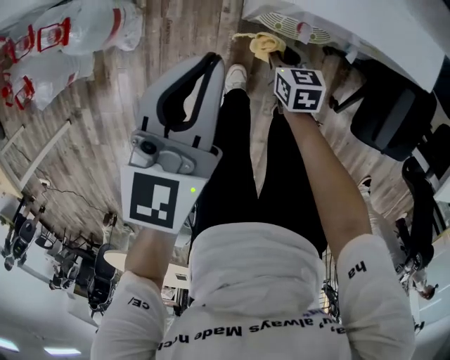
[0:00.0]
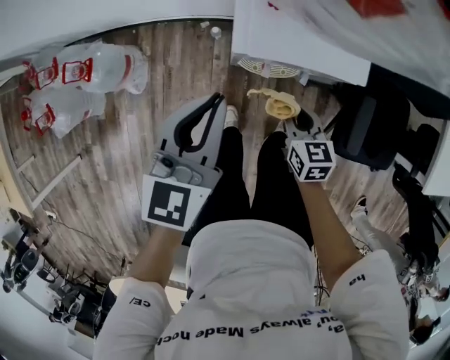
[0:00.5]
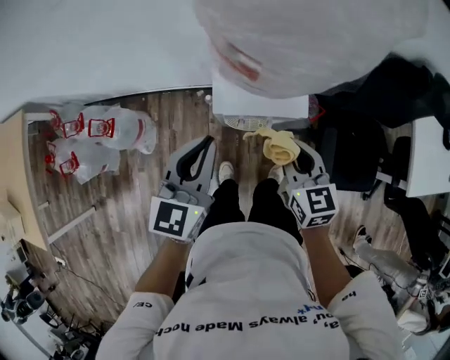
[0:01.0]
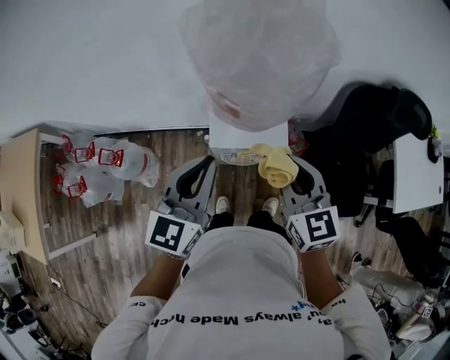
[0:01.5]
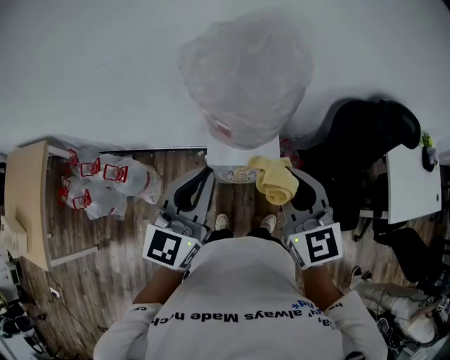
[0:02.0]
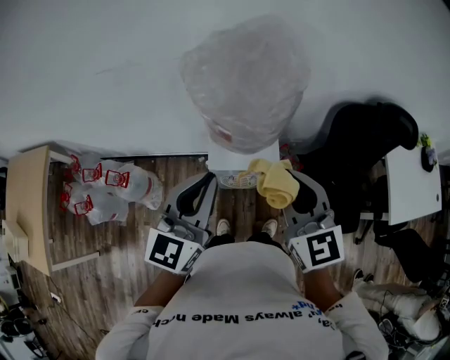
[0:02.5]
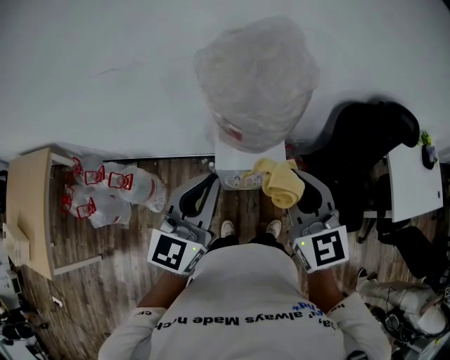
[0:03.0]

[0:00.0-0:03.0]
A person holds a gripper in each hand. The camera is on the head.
0:00.0 to 0:01.5: The right gripper travels upward by about 60 cm, and changes its angle by some 40 degrees, while the left gripper shifts roughly 35 cm upward.
0:01.5 to 0:03.0: The grippers both shift upward by some 10 cm.

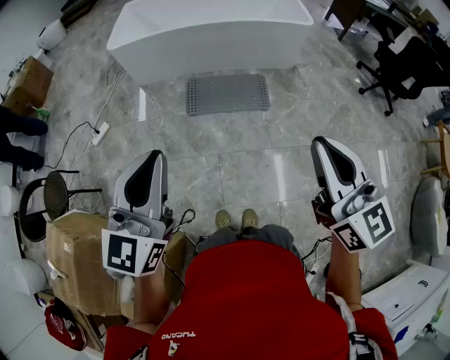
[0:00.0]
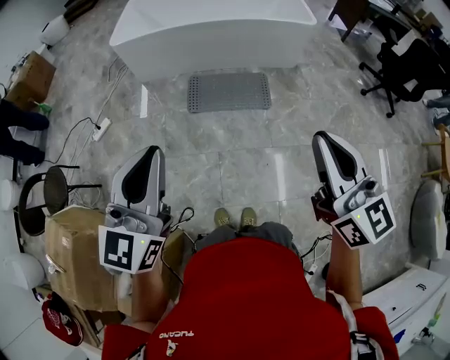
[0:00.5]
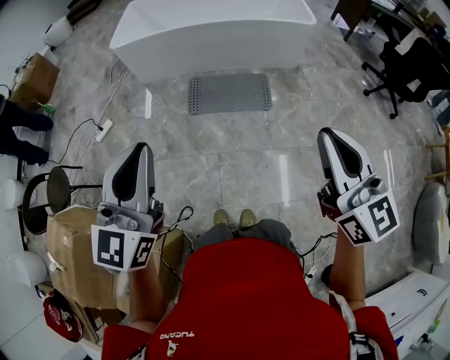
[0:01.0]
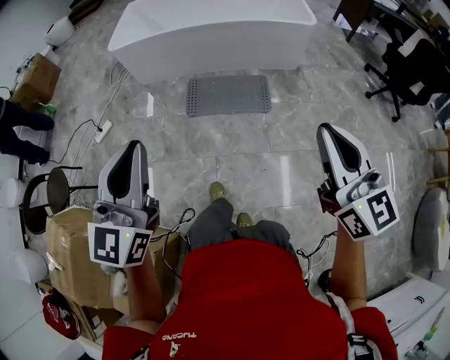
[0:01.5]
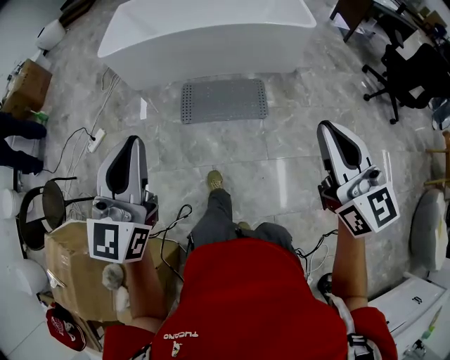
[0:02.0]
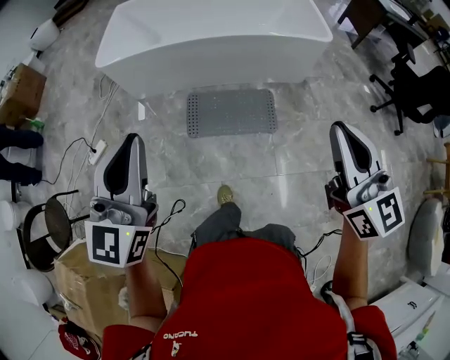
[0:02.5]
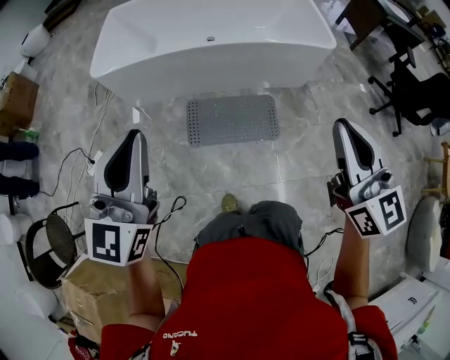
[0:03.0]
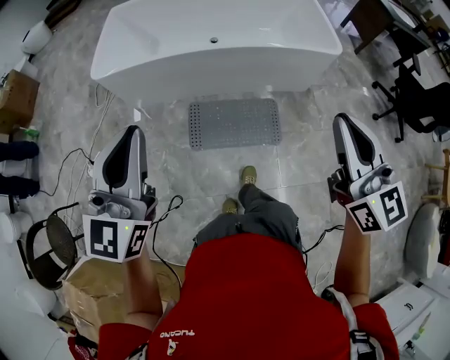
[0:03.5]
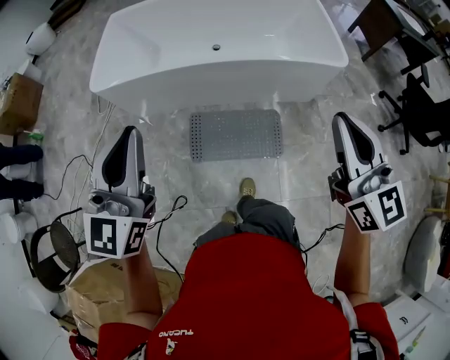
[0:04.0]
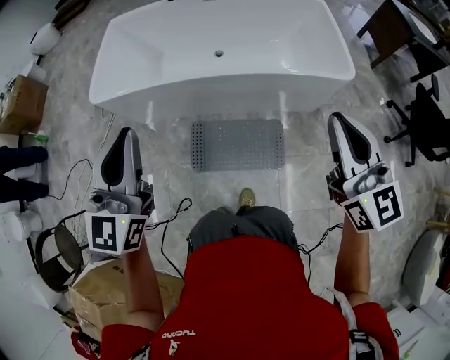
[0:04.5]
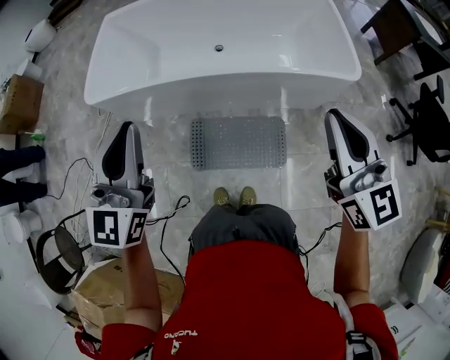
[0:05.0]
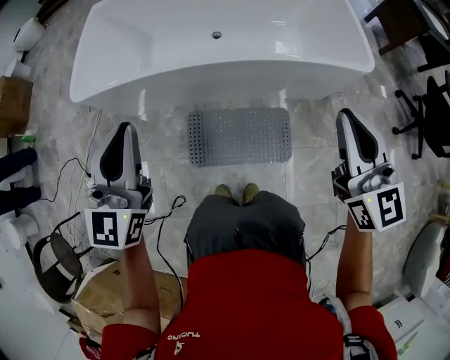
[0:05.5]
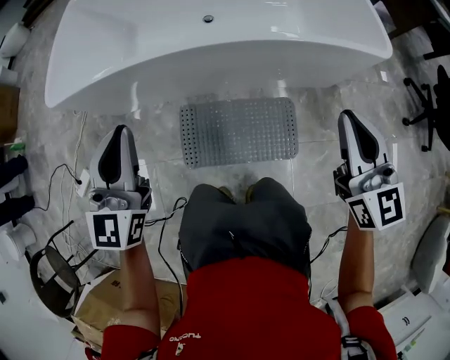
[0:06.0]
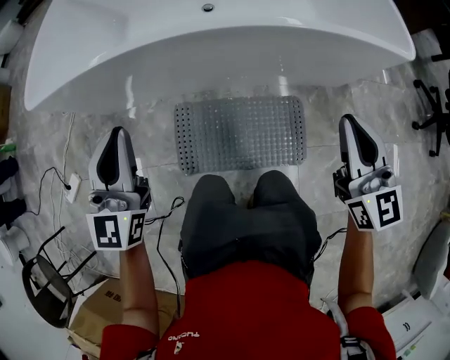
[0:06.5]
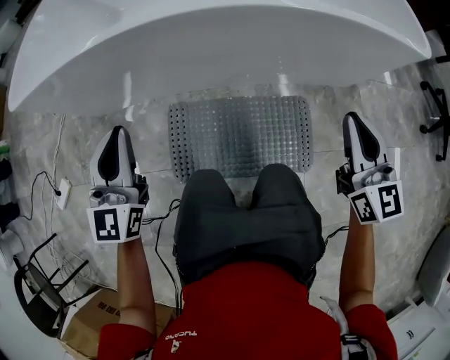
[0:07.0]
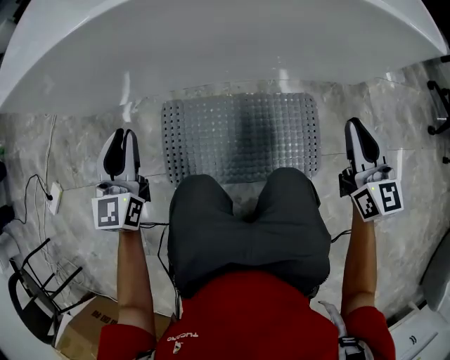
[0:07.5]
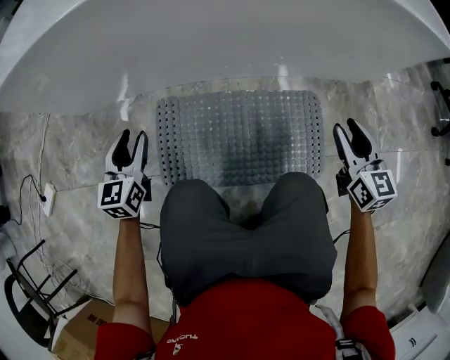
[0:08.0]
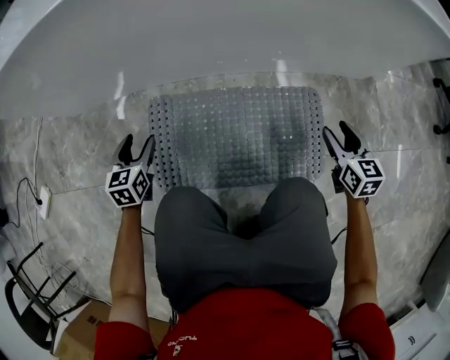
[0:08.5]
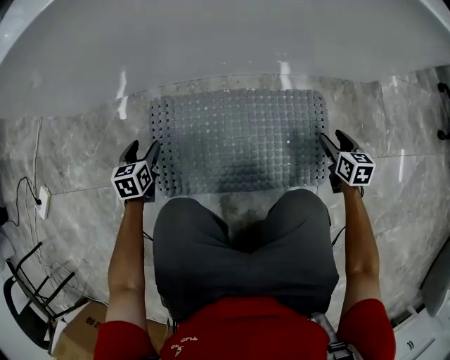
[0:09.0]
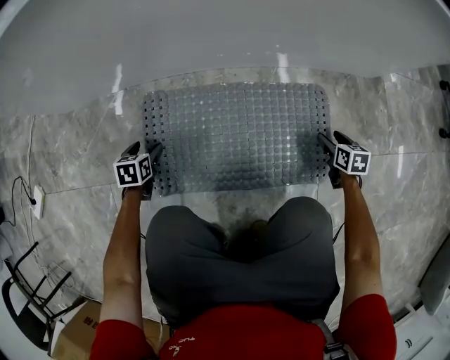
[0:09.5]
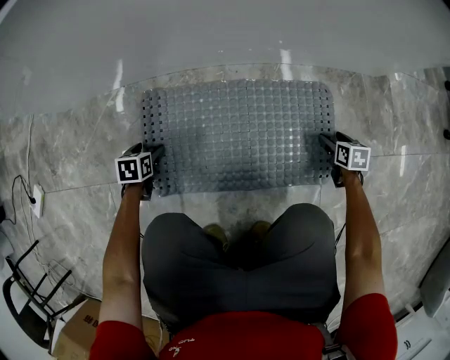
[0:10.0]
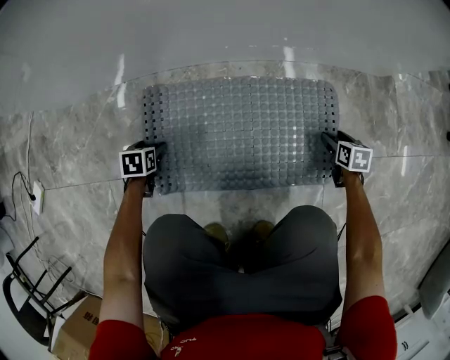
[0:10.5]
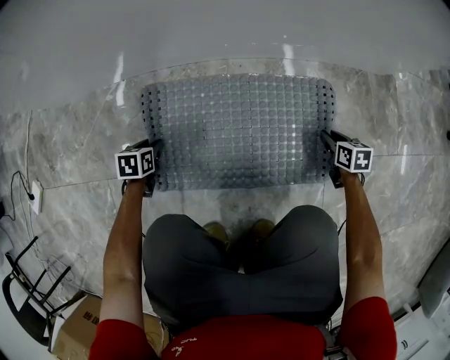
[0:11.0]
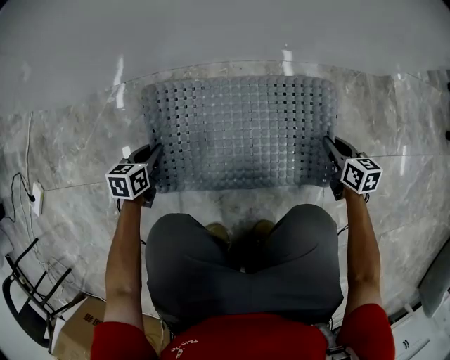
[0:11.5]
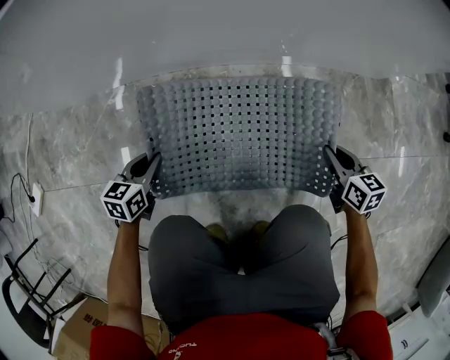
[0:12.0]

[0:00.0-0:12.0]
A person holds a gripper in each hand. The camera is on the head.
0:00.0 to 0:02.0: The left gripper travels forward by some 15 cm. The right gripper heads forward and to the right, covering some 15 cm.
0:02.0 to 0:04.0: Both grippers move forward, roughly 40 cm.
0:04.0 to 0:06.0: Both grippers move downward and forward, about 30 cm.
0:06.0 to 0:08.0: The two grippers go roughly 50 cm downward. The left gripper rotates roughly 20 degrees, and opens, while the right gripper opens.
0:08.0 to 0:10.0: The grippers both shift downward by some 30 cm. The right gripper angles its fingers downward, by roughly 40 degrees, and opens up. The left gripper points its fingers approximately 50 degrees further downward, and opens up.
0:10.0 to 0:12.0: The left gripper goes some 10 cm upward and to the right, rotates some 30 degrees, and closes its fingers. The right gripper is displaced upward and to the left by roughly 15 cm, changes its angle by about 20 degrees, and closes up.

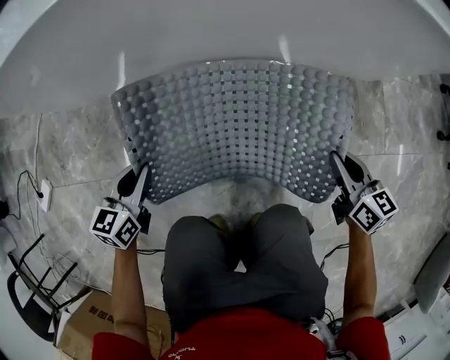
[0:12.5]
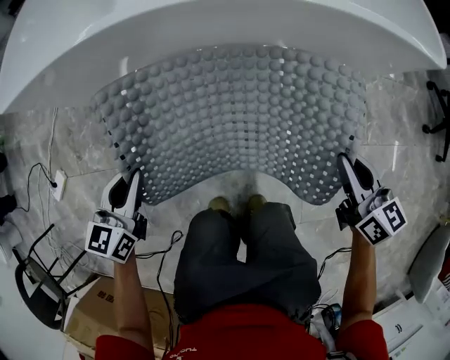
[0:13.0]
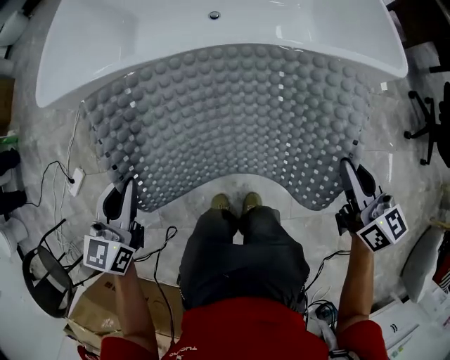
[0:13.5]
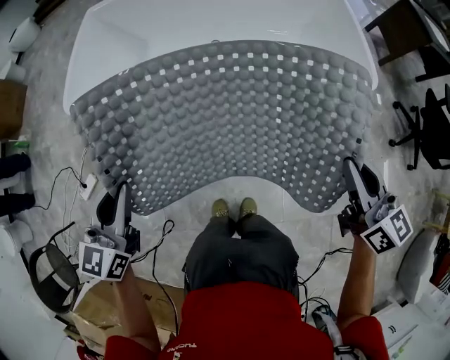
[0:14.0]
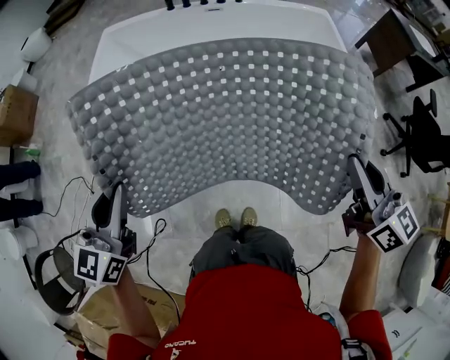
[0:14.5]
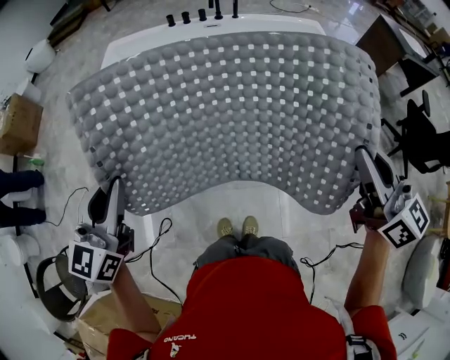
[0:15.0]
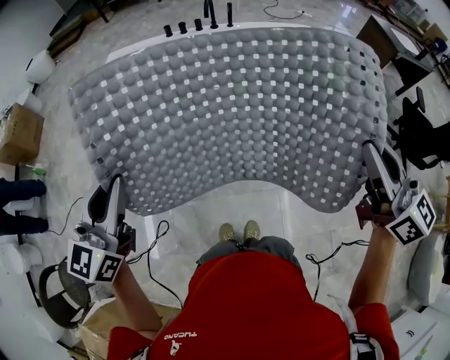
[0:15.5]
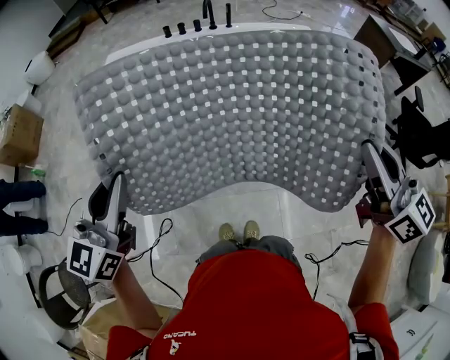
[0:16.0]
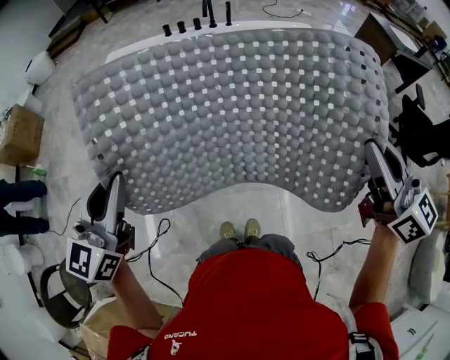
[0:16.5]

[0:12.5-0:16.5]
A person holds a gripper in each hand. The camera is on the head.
0:14.5 to 0:16.5: The grippers make only small movements.

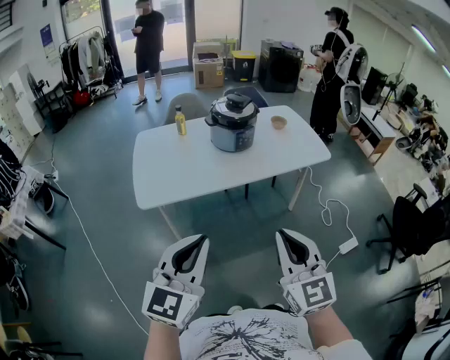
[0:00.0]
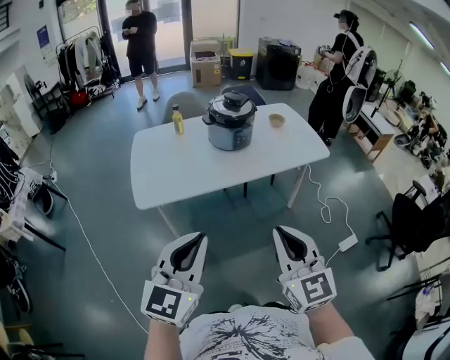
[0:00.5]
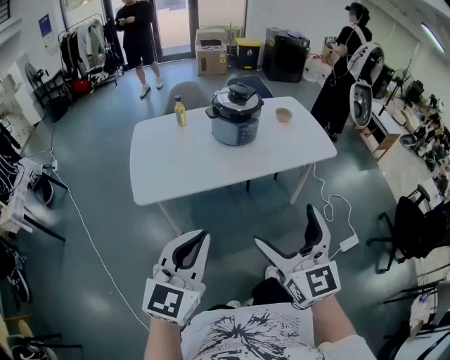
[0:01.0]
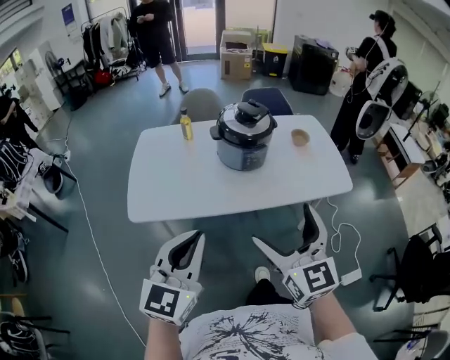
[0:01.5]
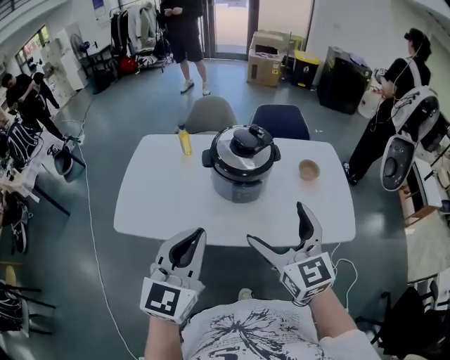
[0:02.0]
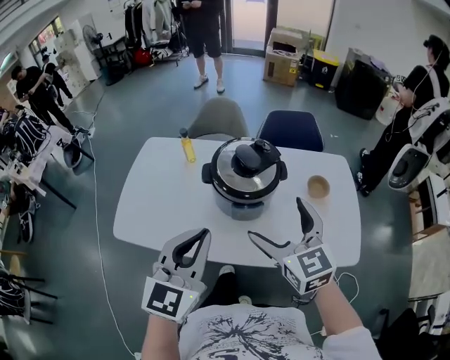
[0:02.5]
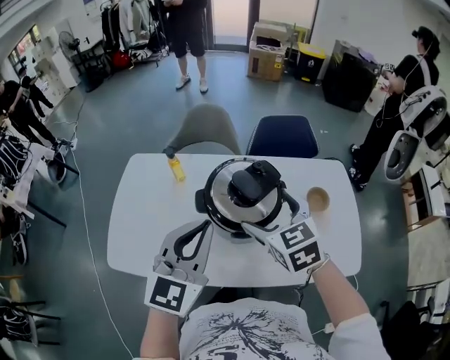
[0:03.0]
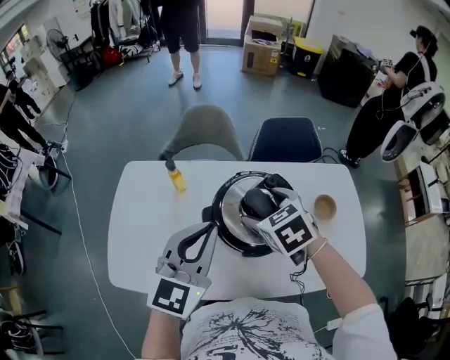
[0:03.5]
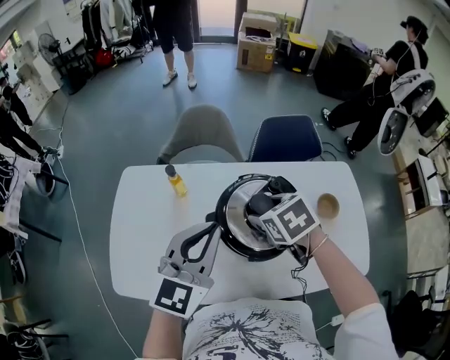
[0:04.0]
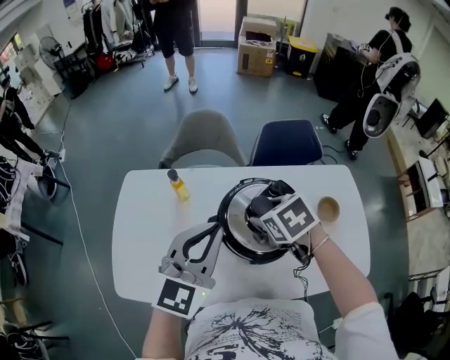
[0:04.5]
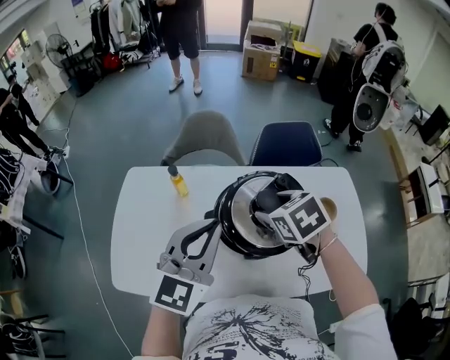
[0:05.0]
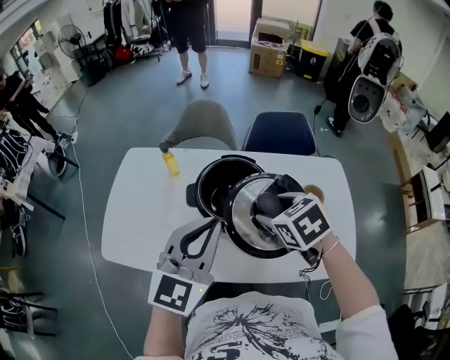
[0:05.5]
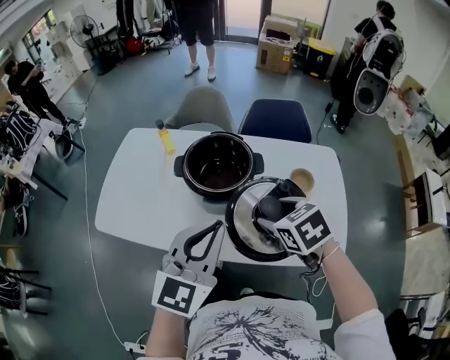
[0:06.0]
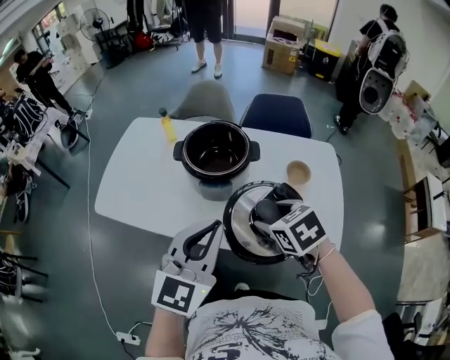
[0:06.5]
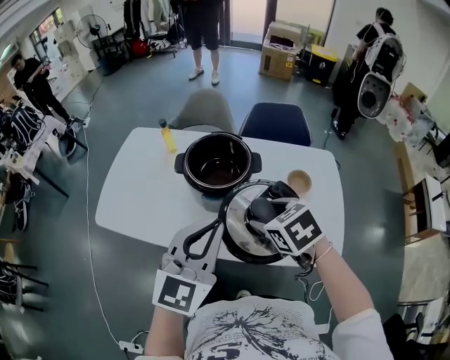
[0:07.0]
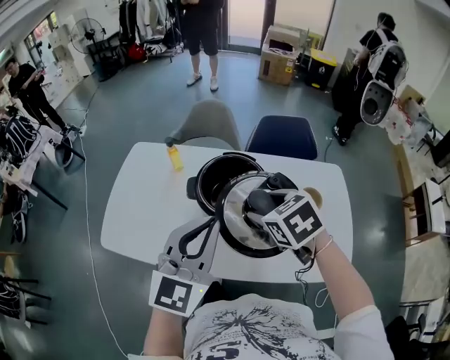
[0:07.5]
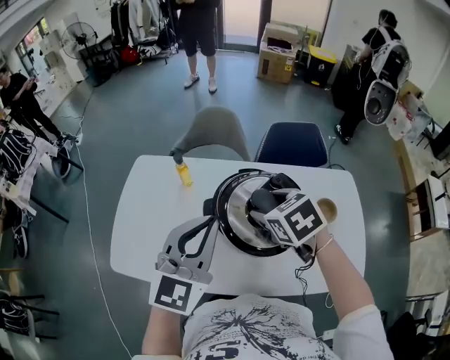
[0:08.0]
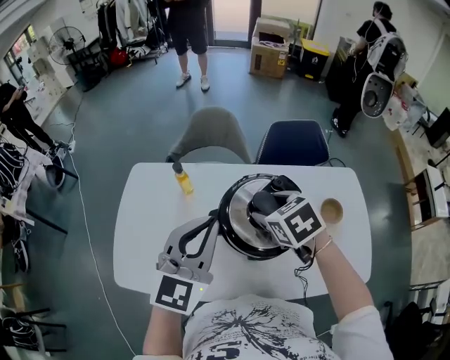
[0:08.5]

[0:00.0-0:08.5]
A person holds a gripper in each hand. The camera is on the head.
0:00.0 to 0:02.0: The pair of grippers is taken forward, approximately 50 cm. The left gripper rotates about 20 degrees, while the right gripper swivels about 20 degrees, and opens.
0:02.0 to 0:04.0: The pair of grippers is taken forward, some 40 cm. The right gripper tilts its fingers some 50 degrees downward, and closes.
0:04.0 to 0:06.5: Both grippers move backward and to the right, some 40 cm.
0:06.5 to 0:08.5: The two grippers go about 40 cm forward and to the left.
